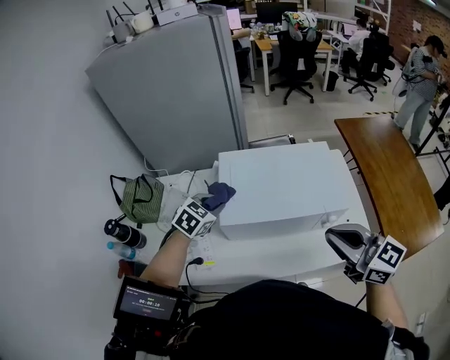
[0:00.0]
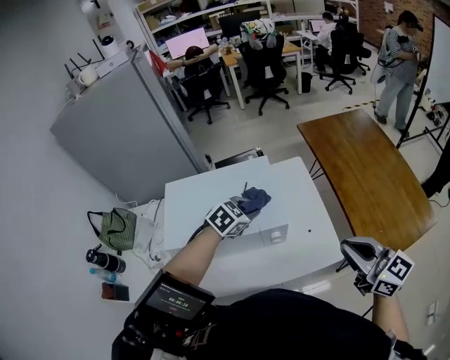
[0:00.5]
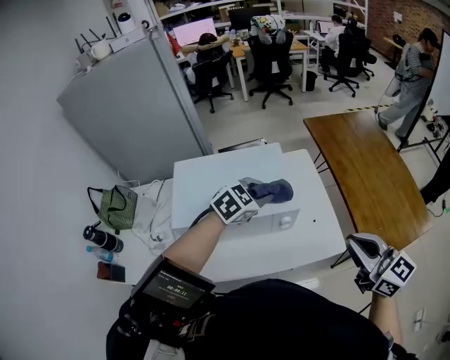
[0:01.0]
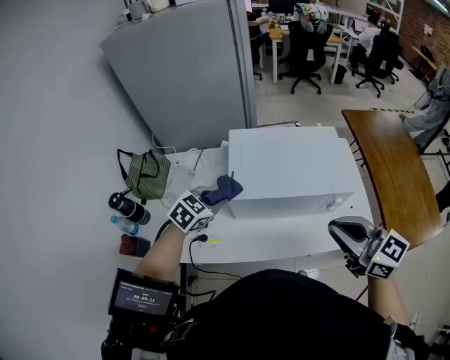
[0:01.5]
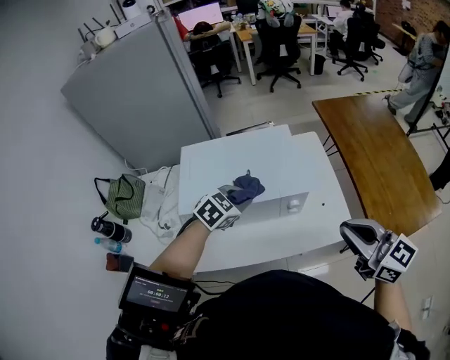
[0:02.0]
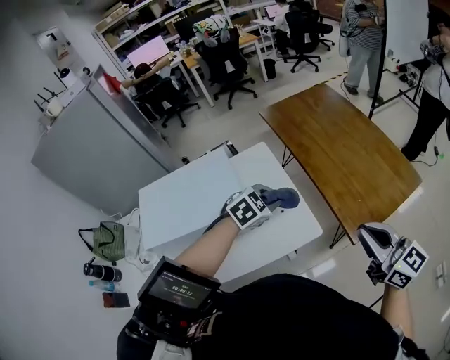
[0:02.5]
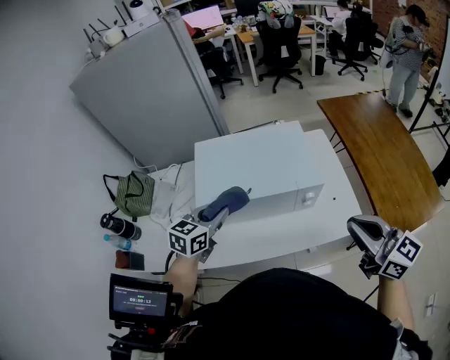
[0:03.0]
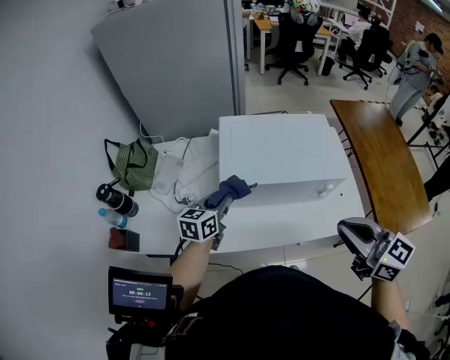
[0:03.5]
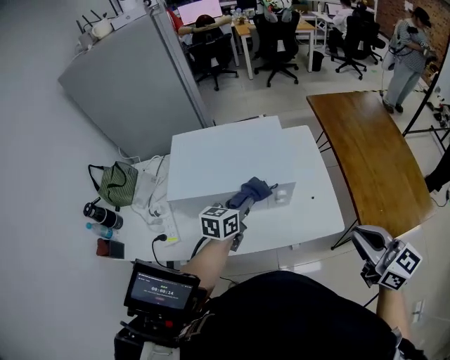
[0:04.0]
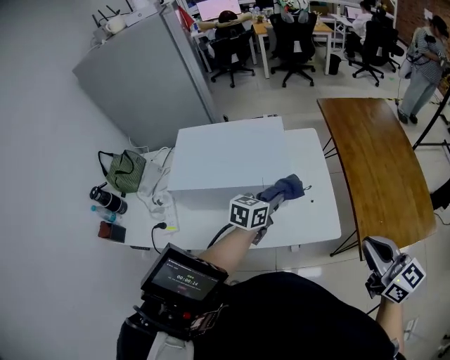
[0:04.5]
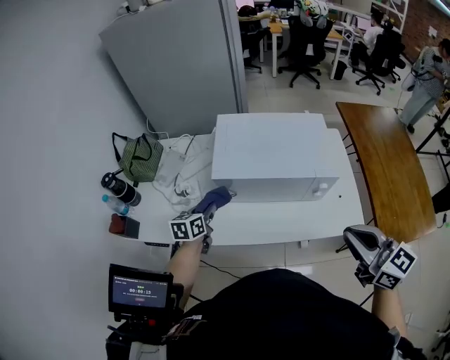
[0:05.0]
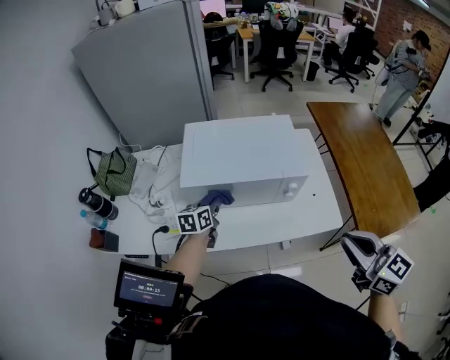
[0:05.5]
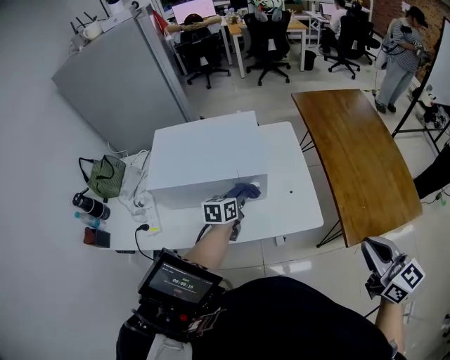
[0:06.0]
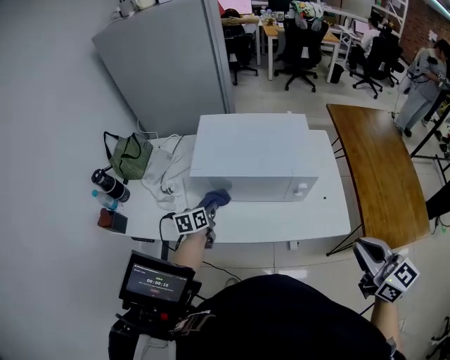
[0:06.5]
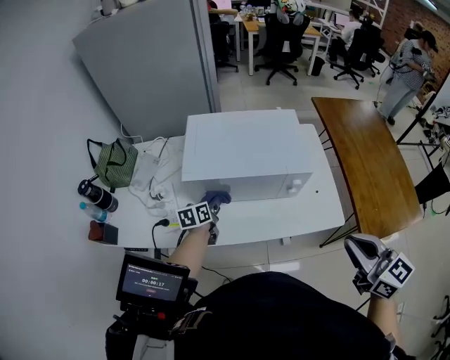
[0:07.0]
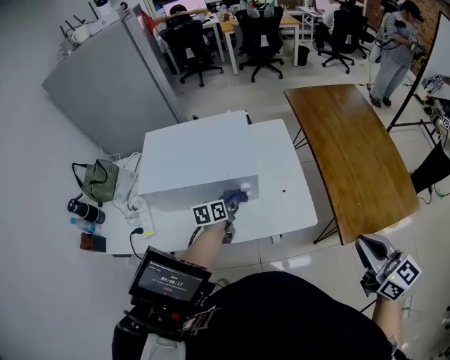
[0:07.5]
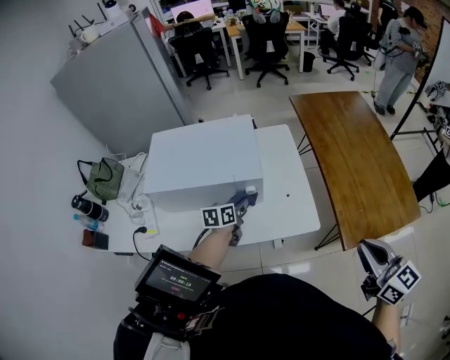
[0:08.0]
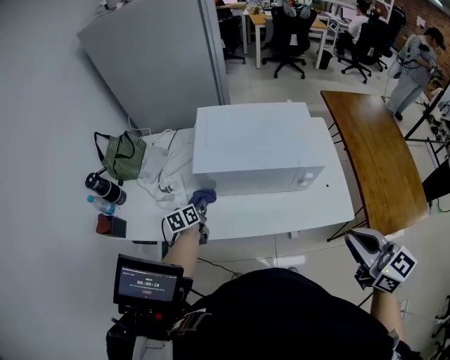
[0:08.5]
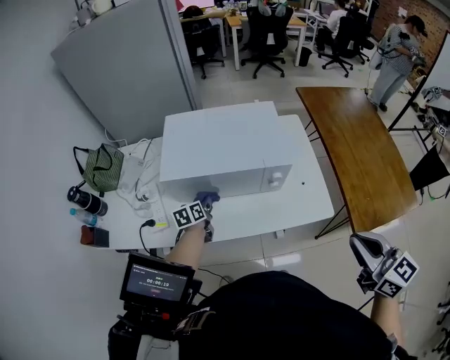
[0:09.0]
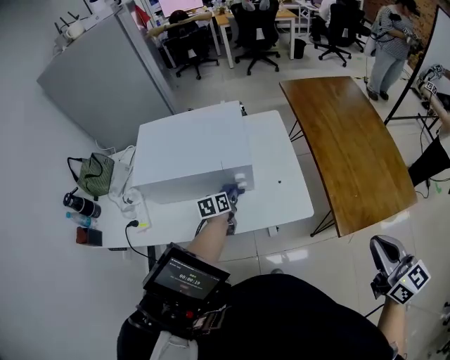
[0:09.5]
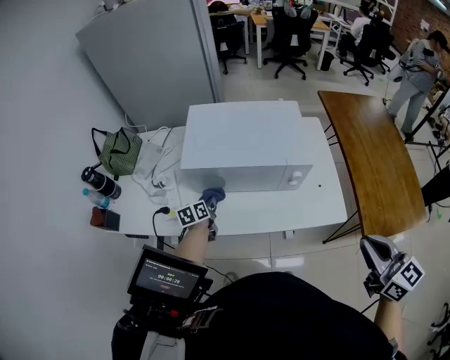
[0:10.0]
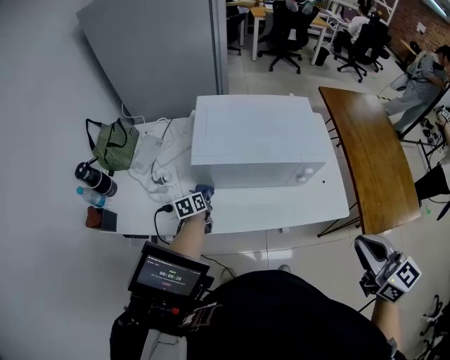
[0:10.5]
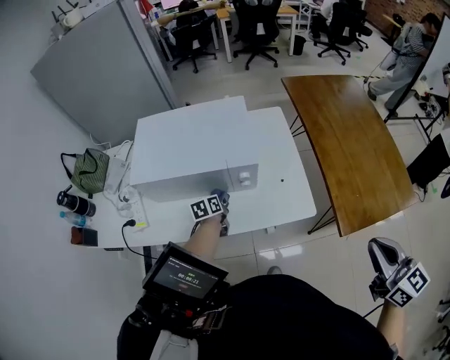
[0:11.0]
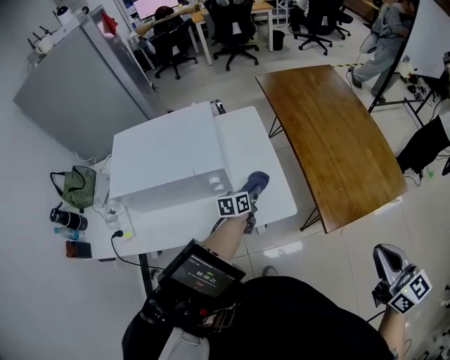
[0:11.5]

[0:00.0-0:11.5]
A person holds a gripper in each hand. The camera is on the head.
0:00.0 to 0:02.0: The left gripper moves left and right over some 35 cm, changing direction 2 times, while the right gripper moves left and right over roughly 25 cm, changing direction 2 times.
0:02.0 to 0:04.0: The left gripper turns by roughly 50 degrees.
0:04.0 to 0:06.0: The right gripper swings left and right, approximately 30 cm each way, with 2 reversals, while the left gripper goes left and right, approximately 40 cm each way, reversing 2 times.
0:06.0 to 0:07.5: The left gripper travels downward by roughly 5 cm, and moves roughly 30 cm to the left and comes back; the right gripper moves about 20 cm to the left and comes back.
0:07.5 to 0:09.5: The right gripper travels to the left and back again, approximately 25 cm each way, while the left gripper reaches approximately 35 cm to the left, then returns.
0:09.5 to 0:11.5: The left gripper shifts roughly 20 cm to the right, while the right gripper goes to the left and returns, roughly 30 cm each way.

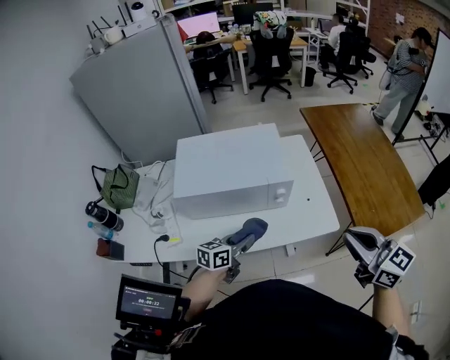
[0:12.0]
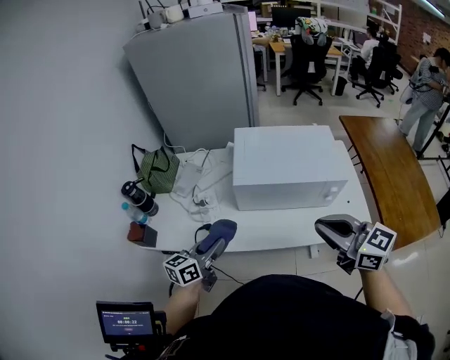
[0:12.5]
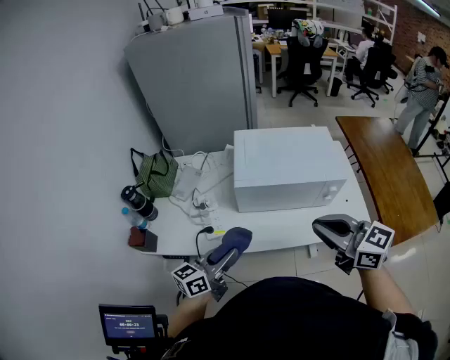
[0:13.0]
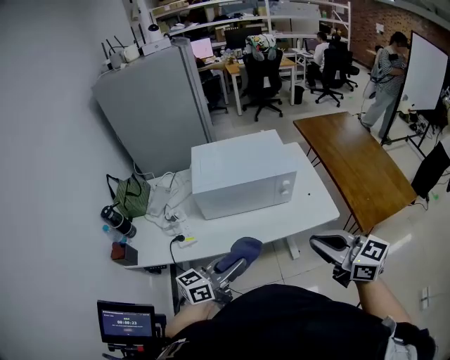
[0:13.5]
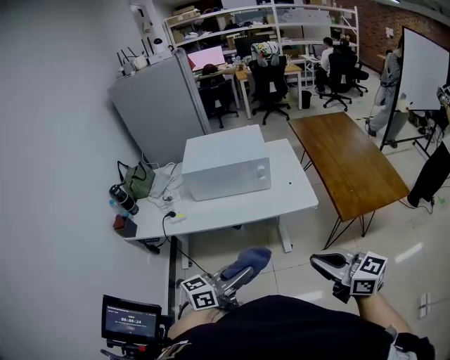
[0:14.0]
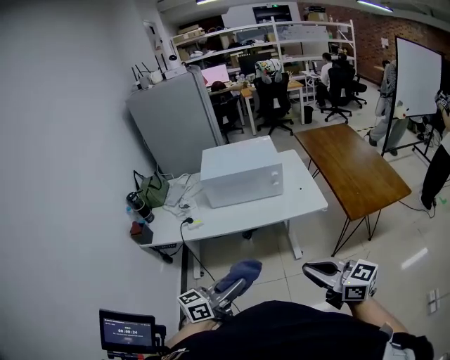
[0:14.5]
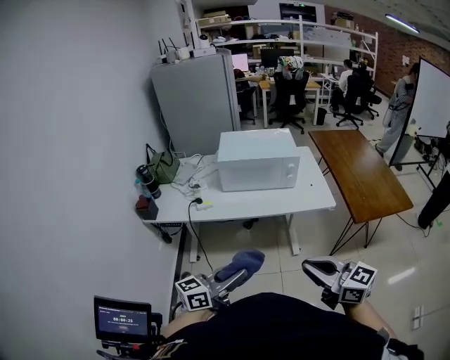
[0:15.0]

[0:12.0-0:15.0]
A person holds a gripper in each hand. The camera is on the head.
0:12.0 to 0:13.5: The left gripper heads backward and upward, covering about 20 cm, reaches roughly 30 cm to the left, then returns, and changes its angle by approximately 20 degrees. The right gripper moves to the left and backward, about 20 cm.
0:13.5 to 0:15.0: Both grippers move backward, some 25 cm.

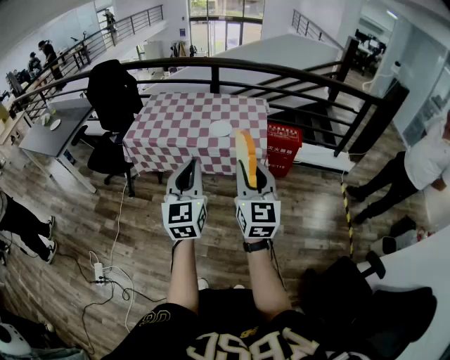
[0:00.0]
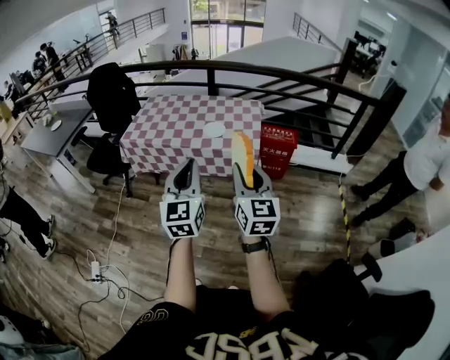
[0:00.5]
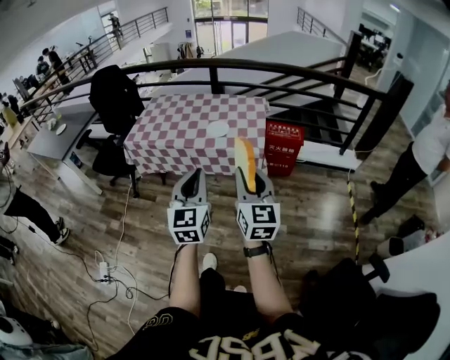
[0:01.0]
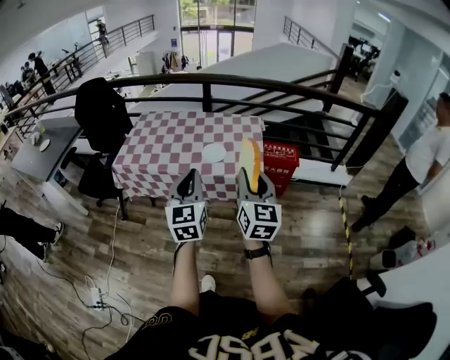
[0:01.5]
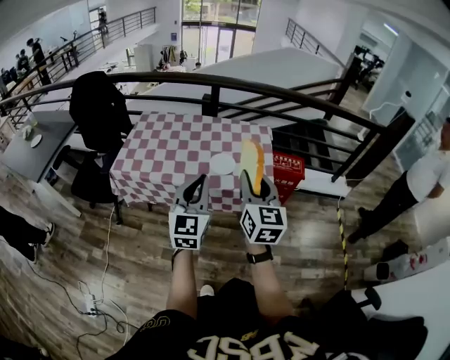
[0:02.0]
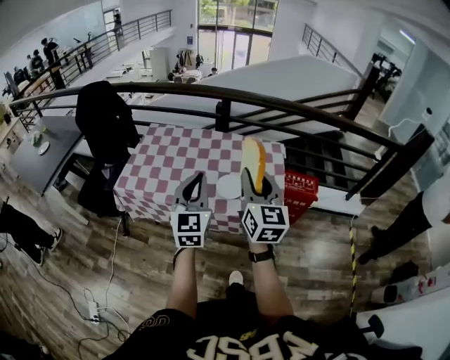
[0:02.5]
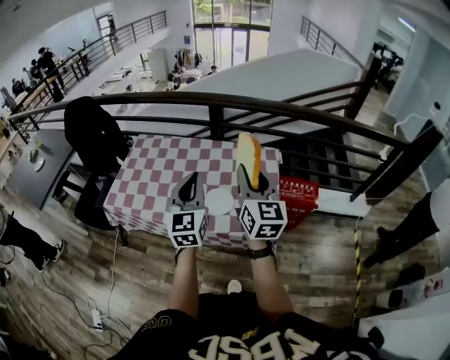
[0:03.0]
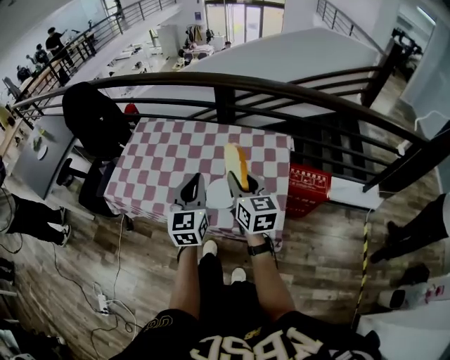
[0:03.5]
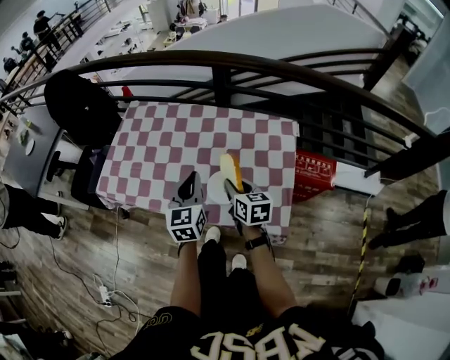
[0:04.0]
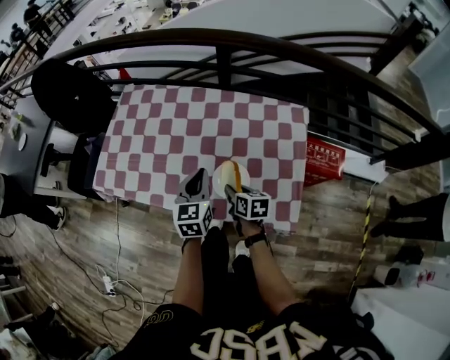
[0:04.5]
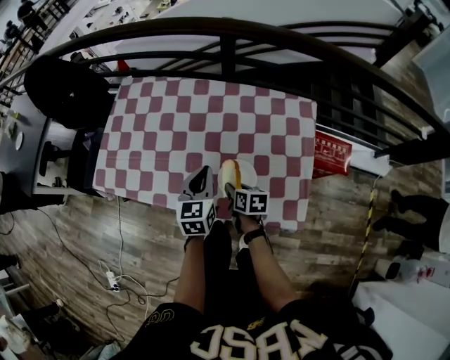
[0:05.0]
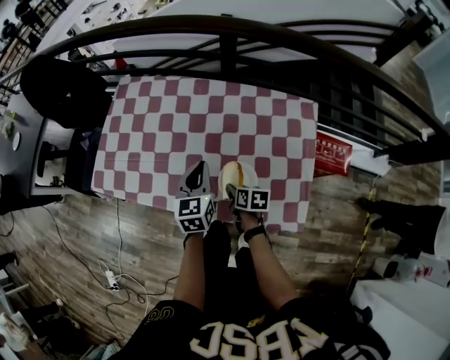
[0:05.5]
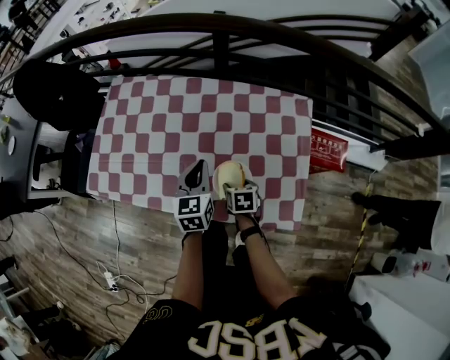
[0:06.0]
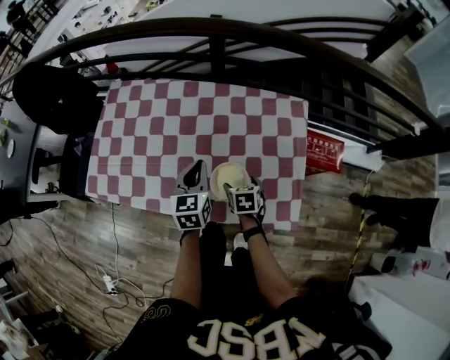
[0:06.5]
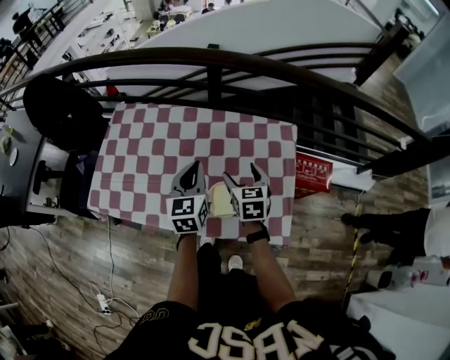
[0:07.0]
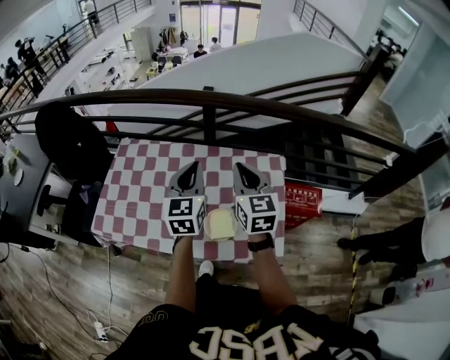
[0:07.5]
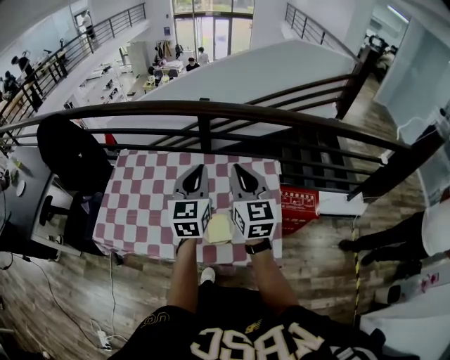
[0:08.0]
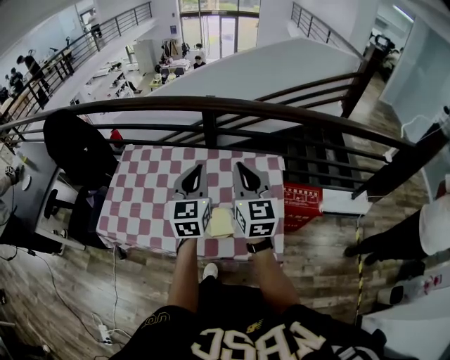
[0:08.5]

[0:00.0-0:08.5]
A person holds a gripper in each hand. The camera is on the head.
0:00.0 to 0:02.0: The two grippers go about 25 cm forward.
0:02.0 to 0:04.0: The grippers both shift forward and downward by approximately 40 cm. The left gripper turns by some 30 degrees. The right gripper changes its angle by approximately 40 degrees.
0:04.0 to 0:06.5: The left gripper travels downward and forward by roughly 10 cm; the right gripper is displaced downward by roughly 15 cm, tips its fingers downward by about 30 degrees, and opens up.
0:06.5 to 0:08.5: The left gripper shifts some 25 cm upward, and swivels about 20 degrees, while the right gripper is displaced upward by roughly 40 cm, tips its fingers upward by about 60 degrees, and closes its fingers.

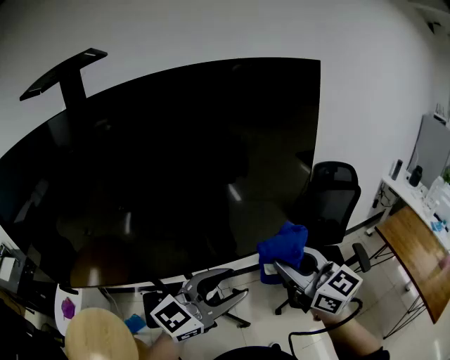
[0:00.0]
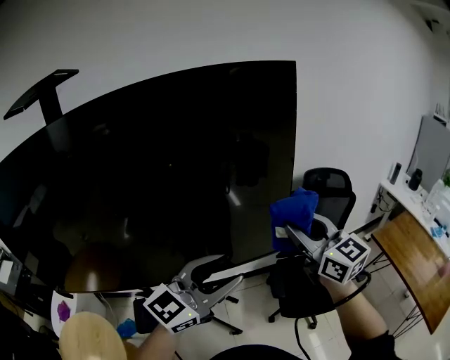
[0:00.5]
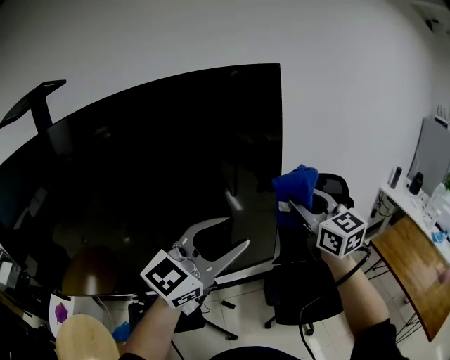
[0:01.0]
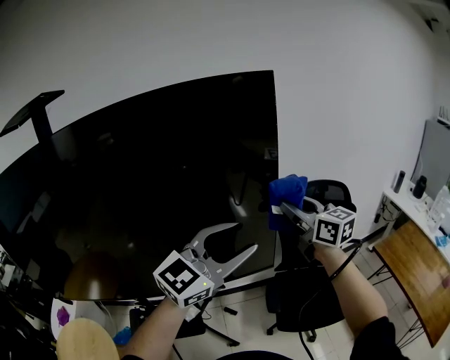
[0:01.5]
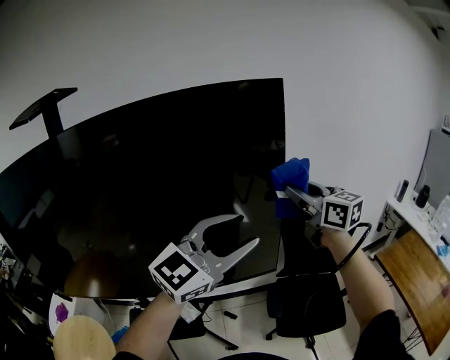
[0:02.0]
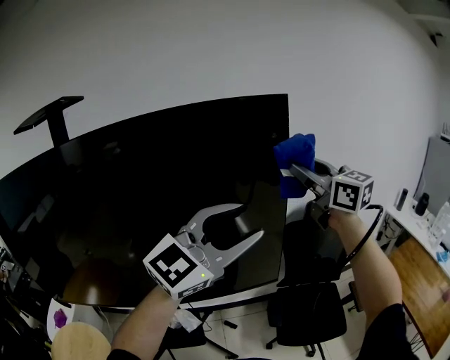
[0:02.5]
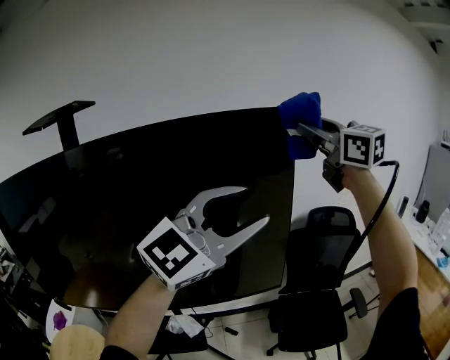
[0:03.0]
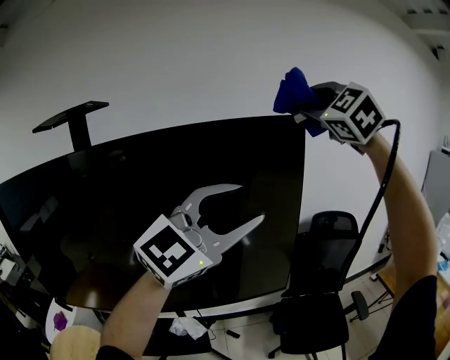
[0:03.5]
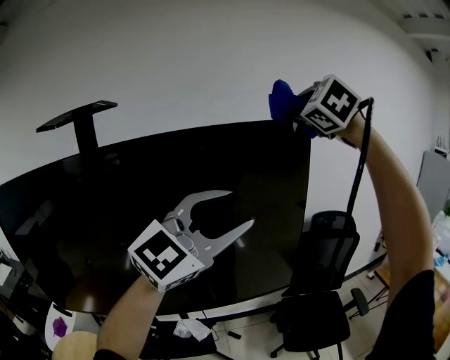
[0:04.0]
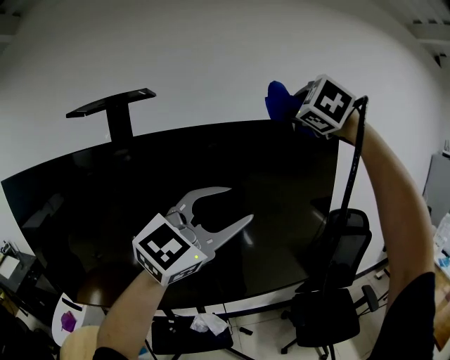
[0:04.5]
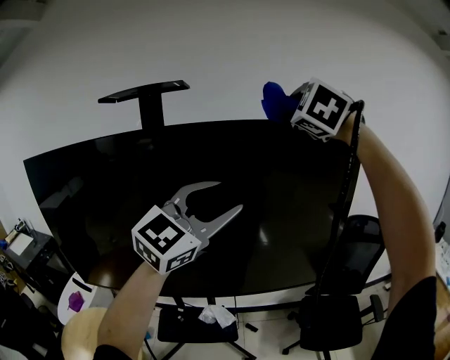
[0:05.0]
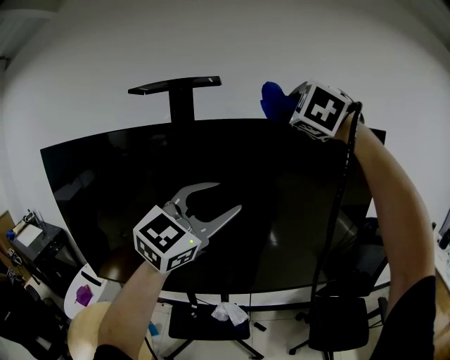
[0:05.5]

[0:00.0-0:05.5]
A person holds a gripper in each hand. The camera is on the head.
0:00.0 to 0:02.0: The left gripper shifts some 25 cm forward, upward and to the right. Meanwhile the right gripper moves forward, to the right and upward, roughly 30 cm.
0:02.0 to 0:03.5: The right gripper goes about 30 cm upward, and rotates around the line of its fingers by approximately 60 degrees, counterclockwise from behind. The left gripper is displaced upward by some 15 cm.
0:03.5 to 0:05.5: Both grippers travel together to the left and backward, roughly 30 cm. The left gripper rotates about 20 degrees.
